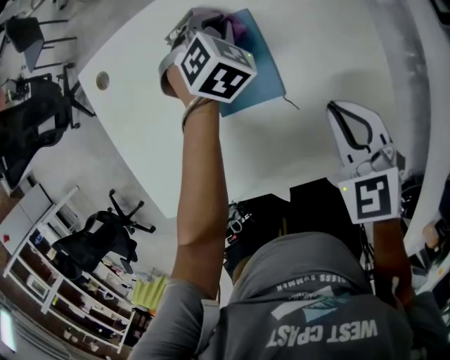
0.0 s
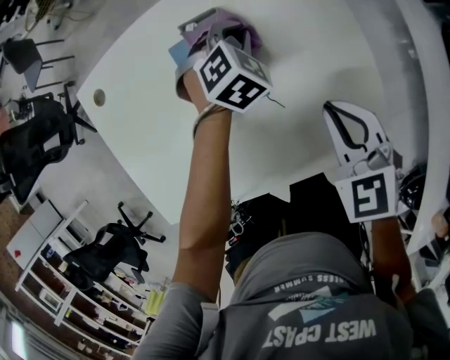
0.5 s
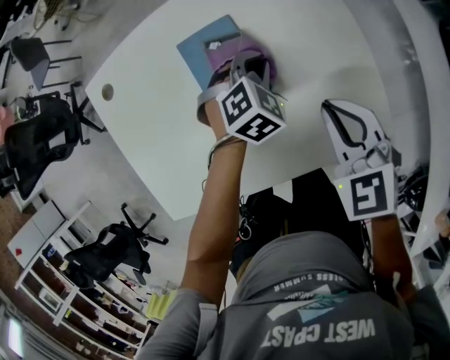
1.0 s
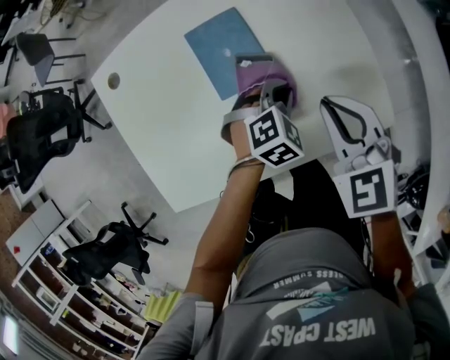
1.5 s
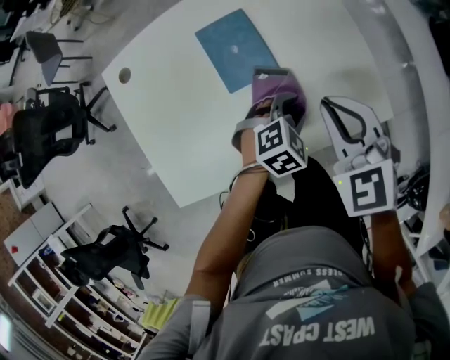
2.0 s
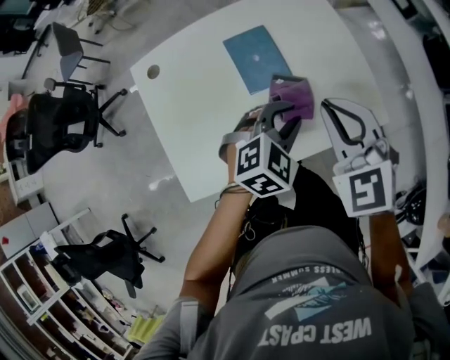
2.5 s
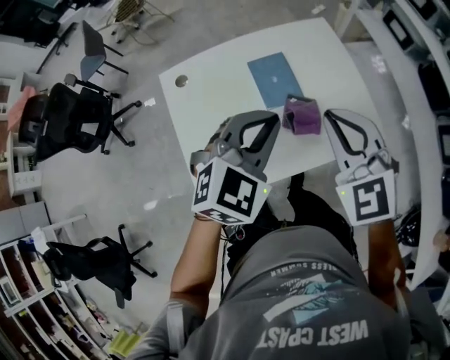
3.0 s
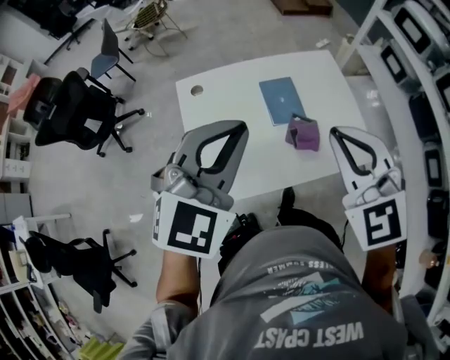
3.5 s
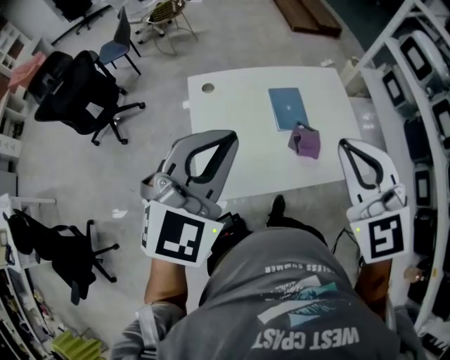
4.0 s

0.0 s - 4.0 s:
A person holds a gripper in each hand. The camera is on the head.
0.0 s - 2.0 s: The left gripper changes place by about 30 cm, changes its angle by some 30 degrees, and opens. Meanwhile the right gripper heads upward, covering approximately 5 cm.
2.0 s - 4.0 s: The right gripper is displaced upward, backward and to the left by about 35 cm, and turns by about 20 degrees. Meanwhile the left gripper heads upward and to the left, covering some 50 cm, points its fingers roughly 40 degrees further upward, and closes.

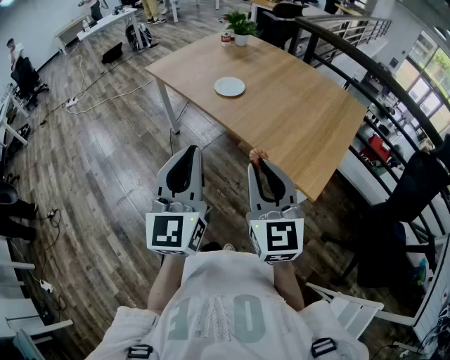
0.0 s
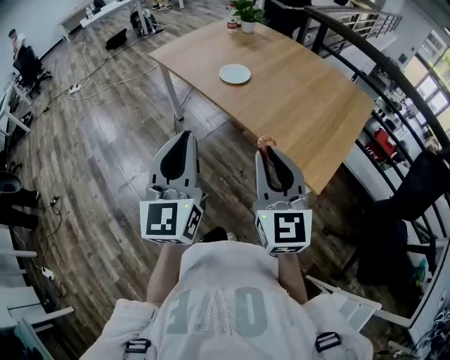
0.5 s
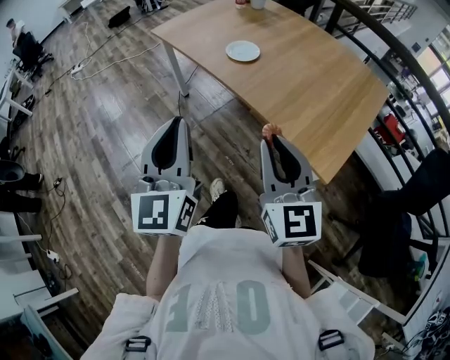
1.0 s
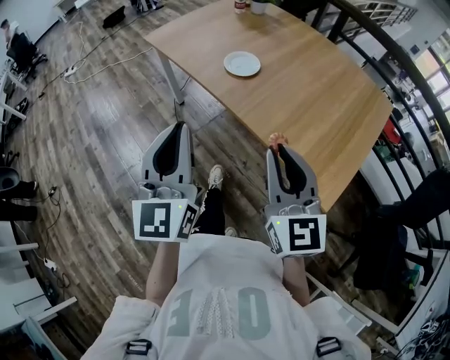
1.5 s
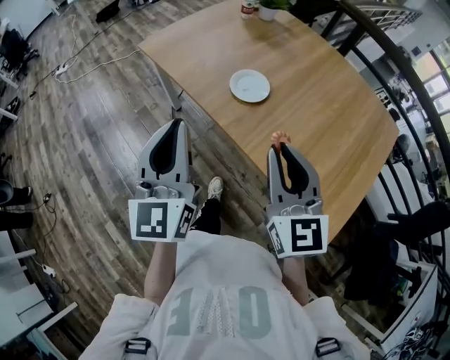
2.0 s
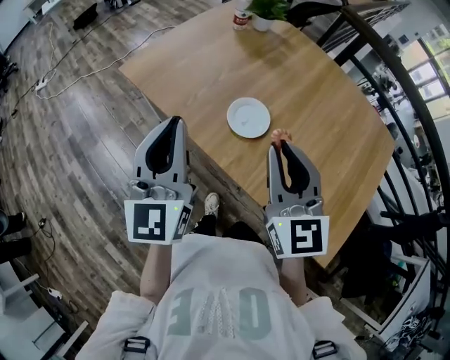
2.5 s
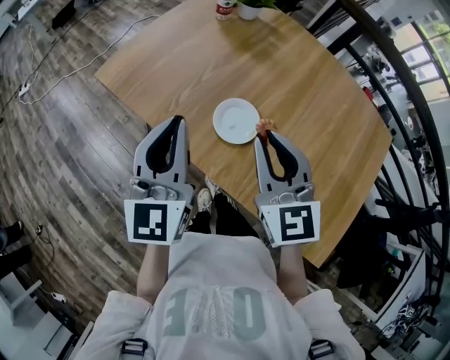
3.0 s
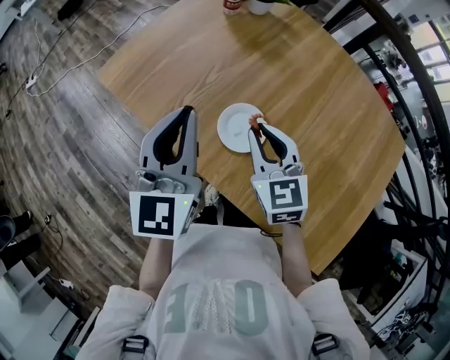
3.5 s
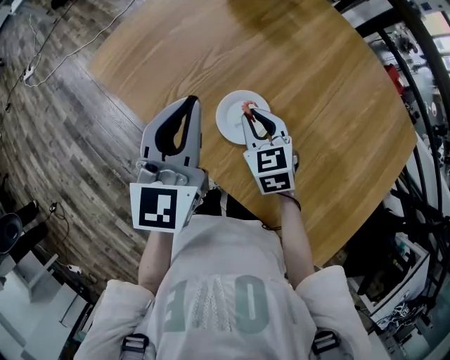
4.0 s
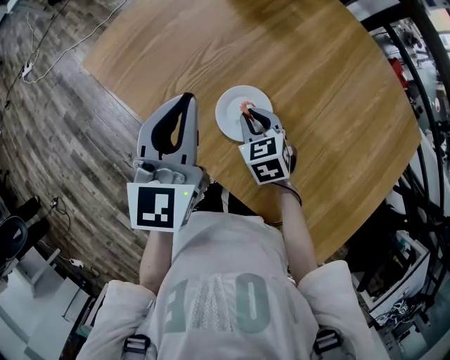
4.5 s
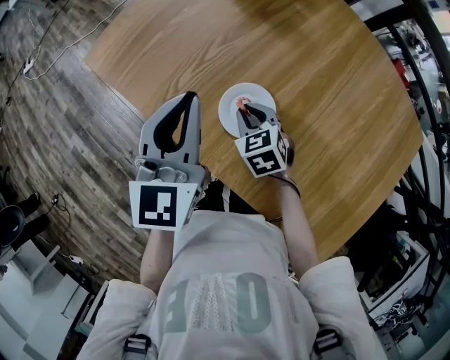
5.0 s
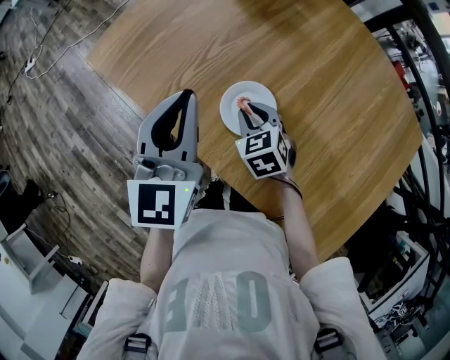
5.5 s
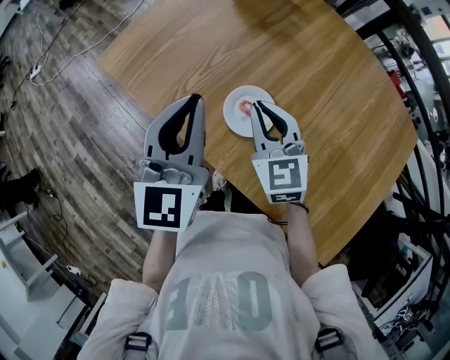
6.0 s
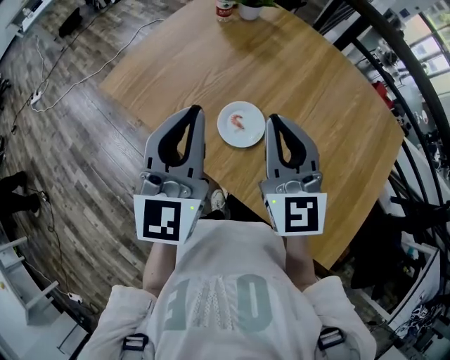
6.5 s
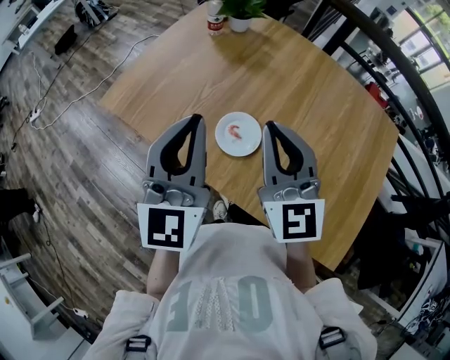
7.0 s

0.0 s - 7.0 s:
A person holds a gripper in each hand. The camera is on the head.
0.0 s - 2.0 s: The grippers both shift forward by about 25 cm.
2.0 s - 3.5 s: The two grippers go roughly 30 cm forward. The right gripper rotates about 20 degrees.
3.5 s - 5.0 s: The right gripper moves downward, some 15 cm, and turns by about 30 degrees; the left gripper is displaced downward by some 5 cm.
5.0 s - 7.0 s: The right gripper heads upward, covering approximately 30 cm, and points its fingers about 50 degrees further upward; the left gripper moves upward and backward, about 10 cm.

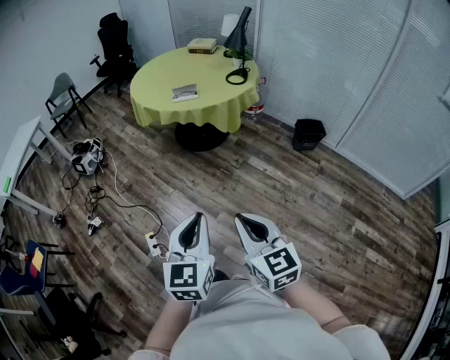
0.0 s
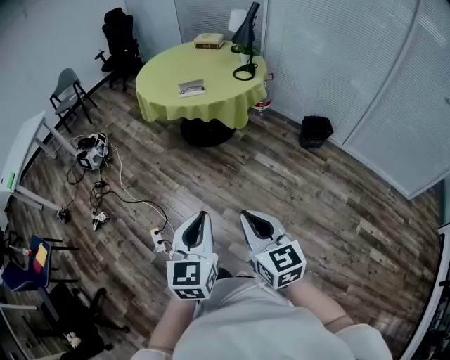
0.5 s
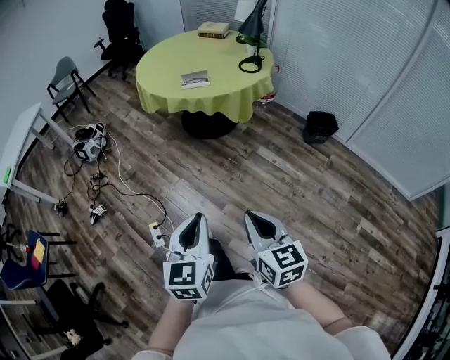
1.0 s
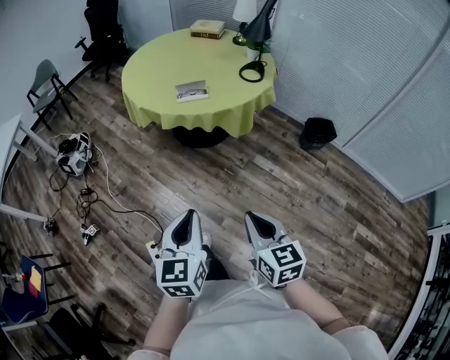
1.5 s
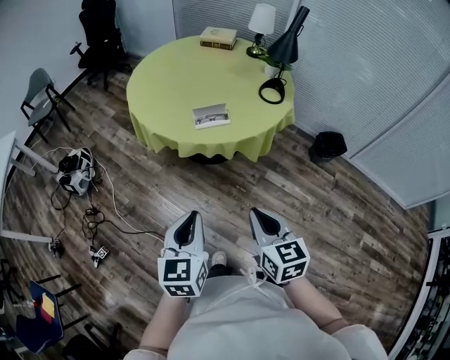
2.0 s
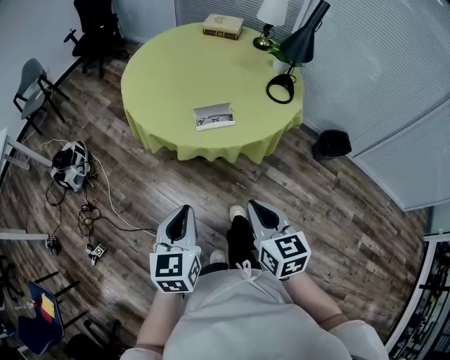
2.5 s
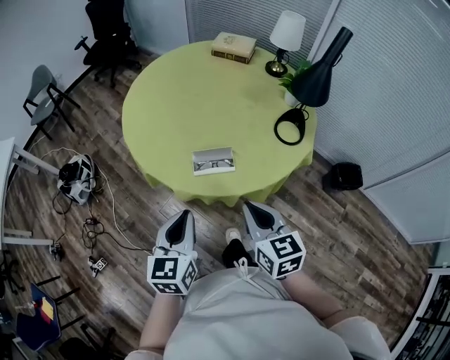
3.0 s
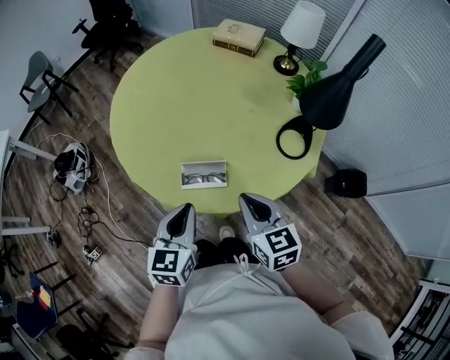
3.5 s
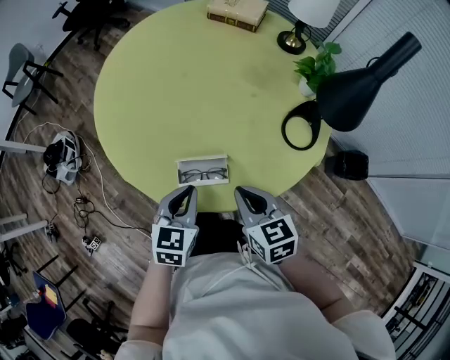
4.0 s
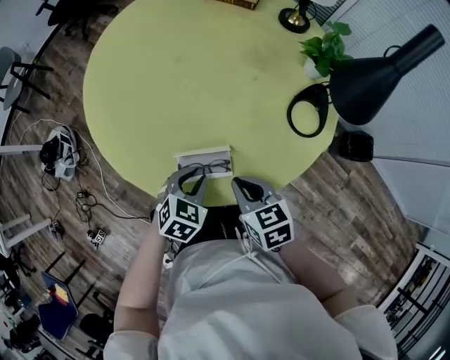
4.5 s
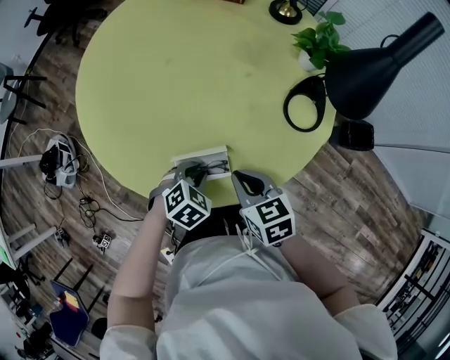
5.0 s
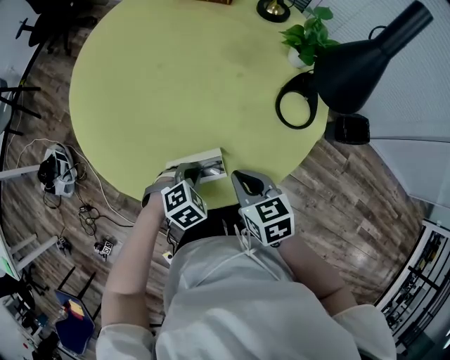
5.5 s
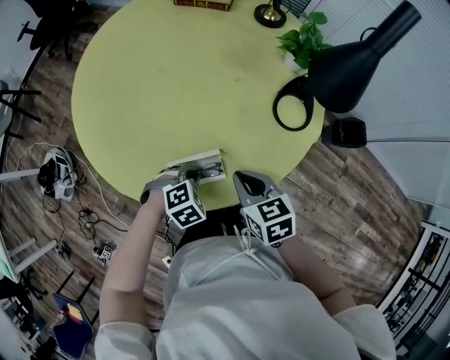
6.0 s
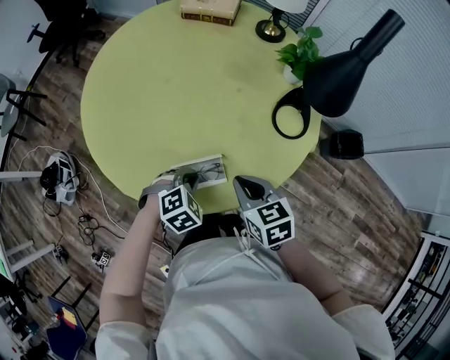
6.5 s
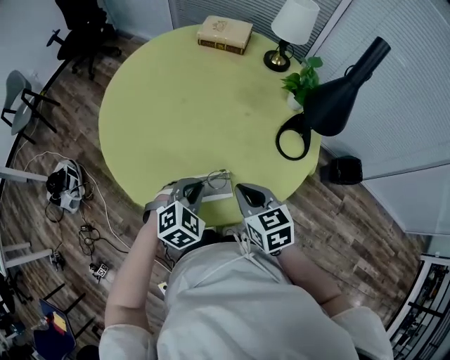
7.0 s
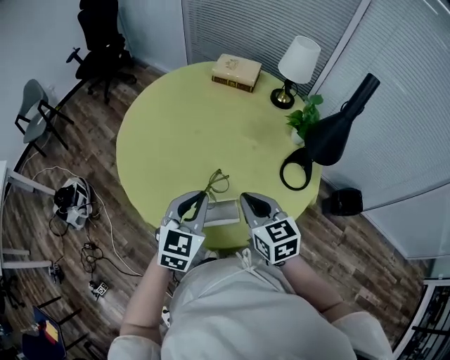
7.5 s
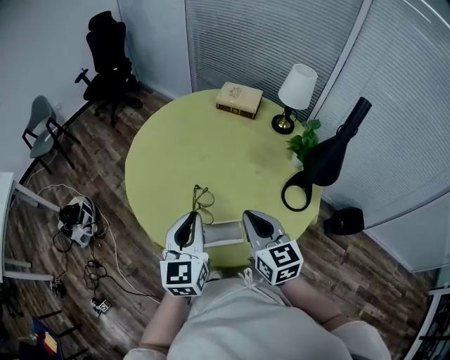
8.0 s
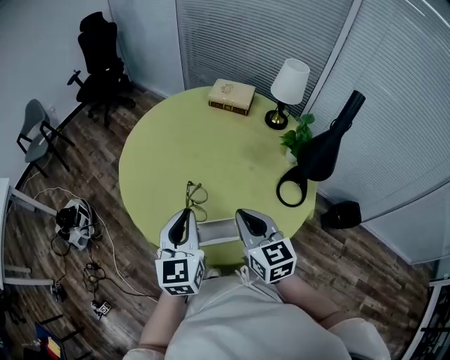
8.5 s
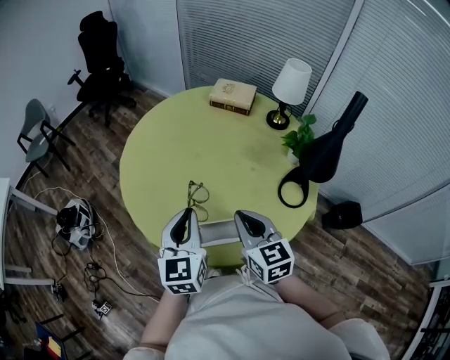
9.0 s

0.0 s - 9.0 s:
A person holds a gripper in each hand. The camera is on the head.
0.0 s - 2.0 s: Both grippers are carried forward, approximately 50 cm.
2.0 s - 4.5 s: The two grippers travel together, forward, roughly 50 cm. The left gripper heads downward, covering approximately 20 cm, and points its fingers approximately 30 degrees further downward, while the right gripper turns by about 30 degrees.
4.5 s - 7.0 s: The two grippers go roughly 10 cm upward. The left gripper turns by approximately 20 degrees.
7.0 s - 9.0 s: The right gripper is displaced upward by about 10 cm. Meanwhile the left gripper travels upward and to the left by some 20 cm, and points its fingers roughly 40 degrees further upward.

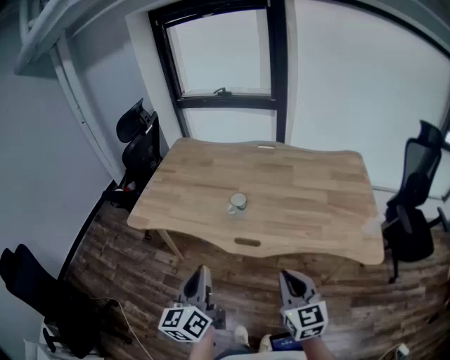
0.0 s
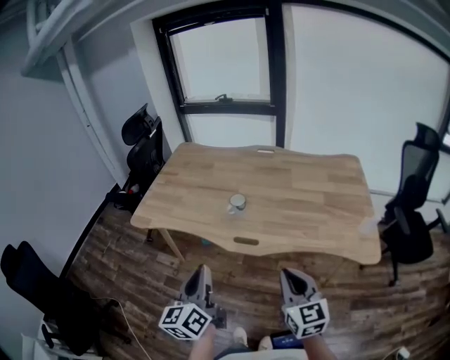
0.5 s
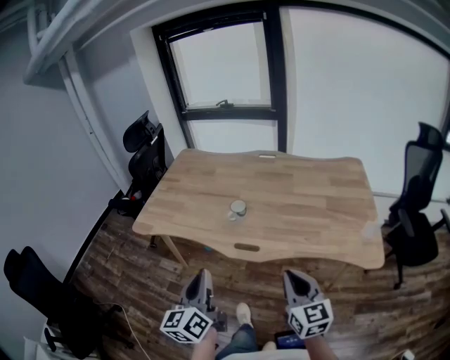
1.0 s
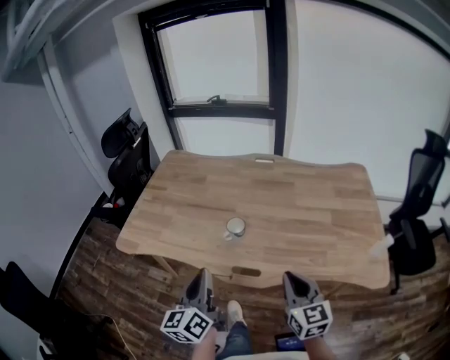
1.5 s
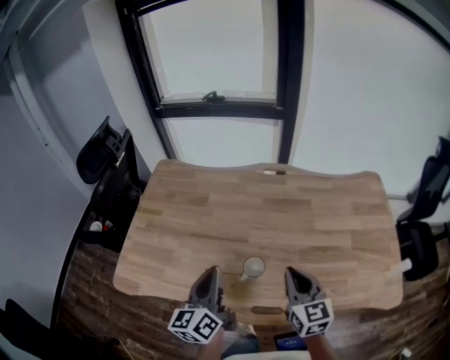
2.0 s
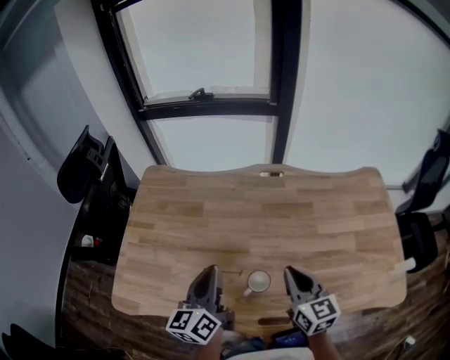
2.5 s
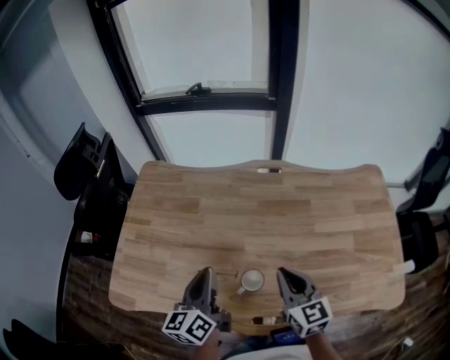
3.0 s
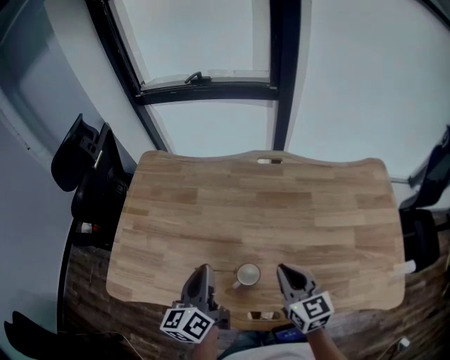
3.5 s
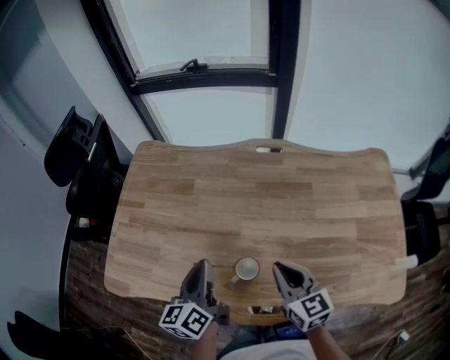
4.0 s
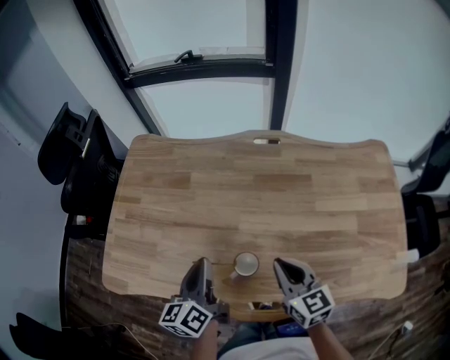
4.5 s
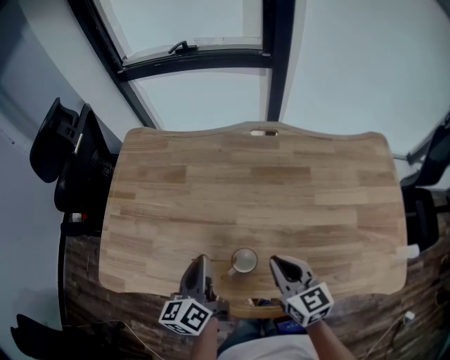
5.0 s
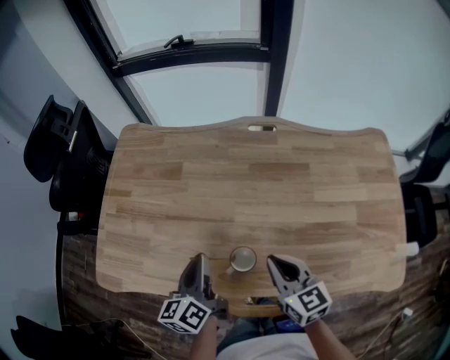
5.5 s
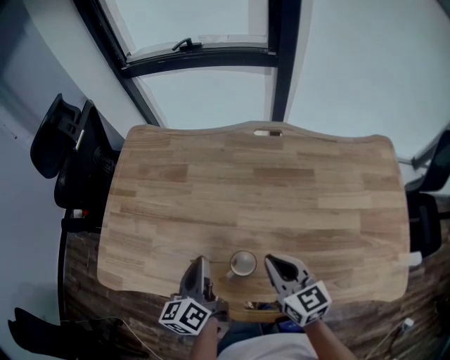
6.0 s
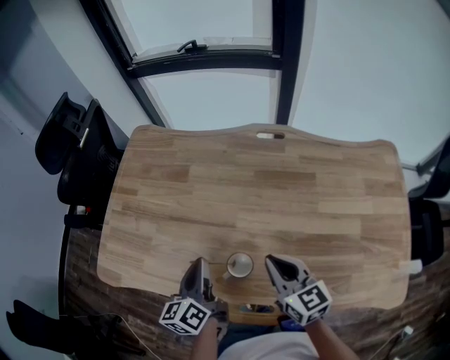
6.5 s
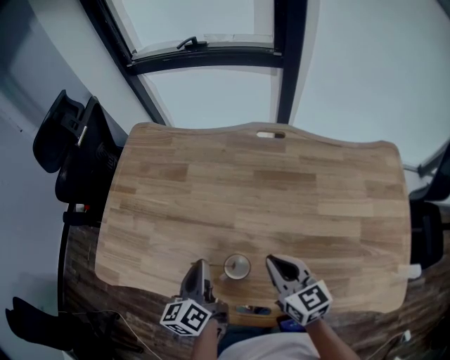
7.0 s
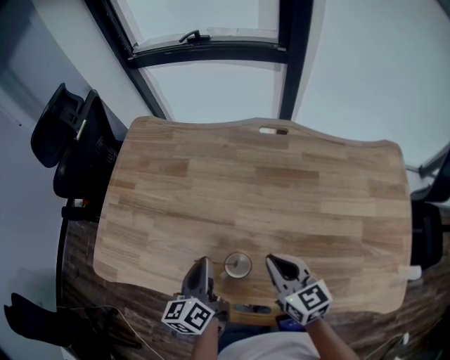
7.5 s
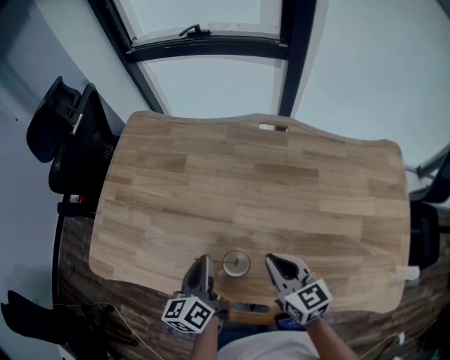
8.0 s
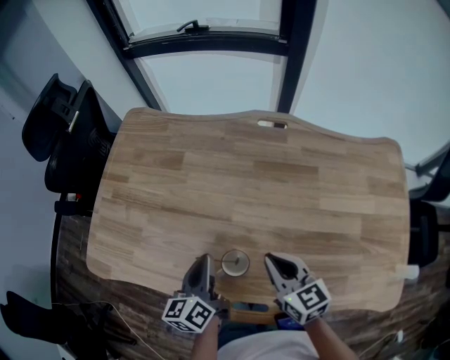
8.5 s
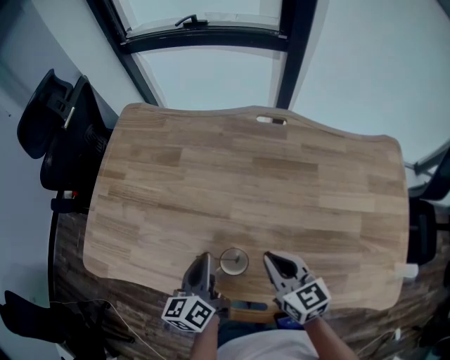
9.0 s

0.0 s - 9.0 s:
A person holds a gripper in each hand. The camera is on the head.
0.0 s - 2.0 s: The grippers both shift forward by some 35 cm.
2.0 s - 4.5 s: The right gripper moves downward, approximately 5 cm. Meanwhile the left gripper heads downward and forward, covering some 10 cm.
4.5 s - 7.0 s: The left gripper travels downward by approximately 5 cm.
7.0 s - 9.0 s: The grippers move only a little.
